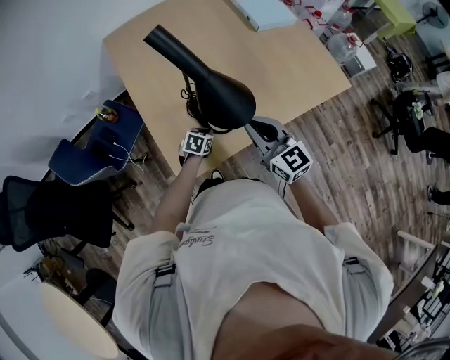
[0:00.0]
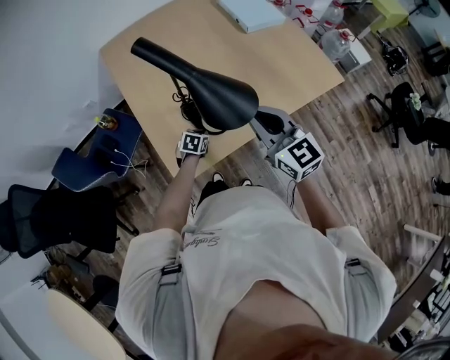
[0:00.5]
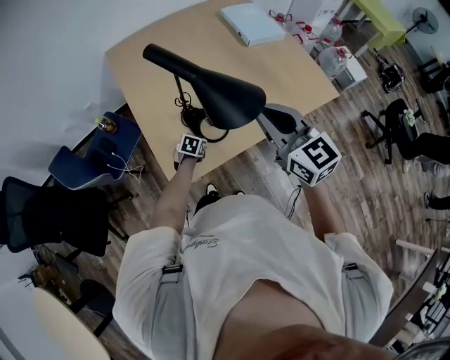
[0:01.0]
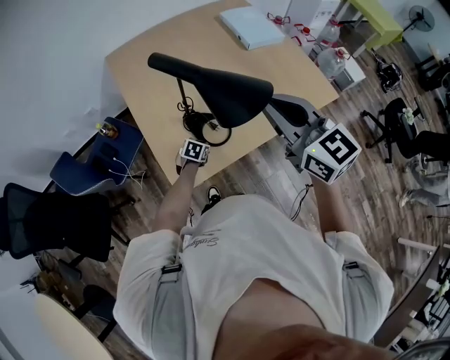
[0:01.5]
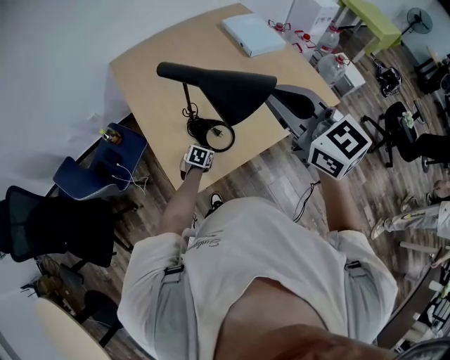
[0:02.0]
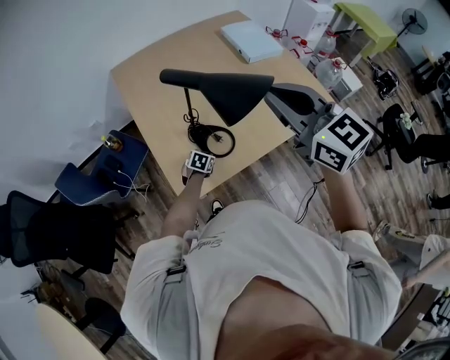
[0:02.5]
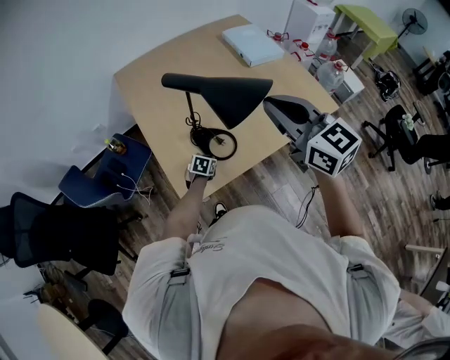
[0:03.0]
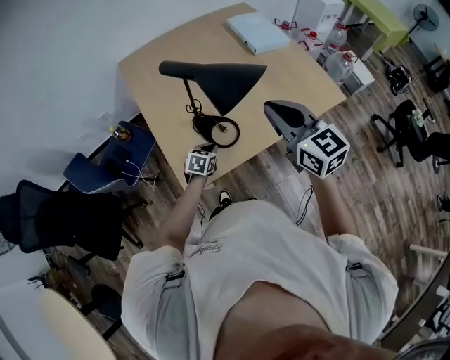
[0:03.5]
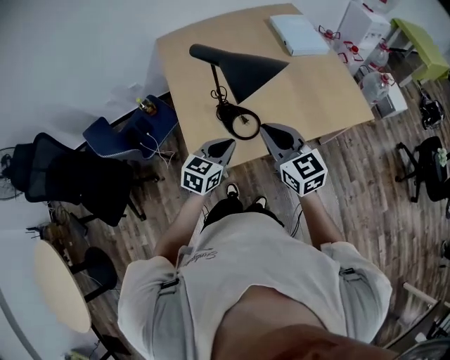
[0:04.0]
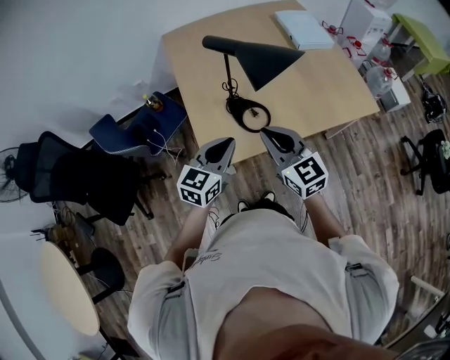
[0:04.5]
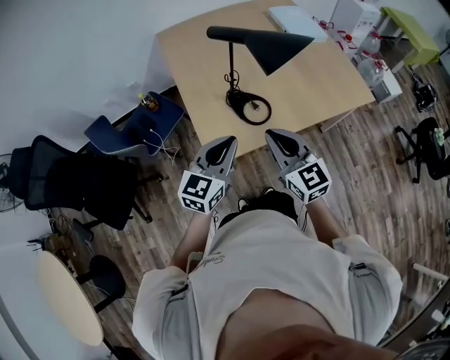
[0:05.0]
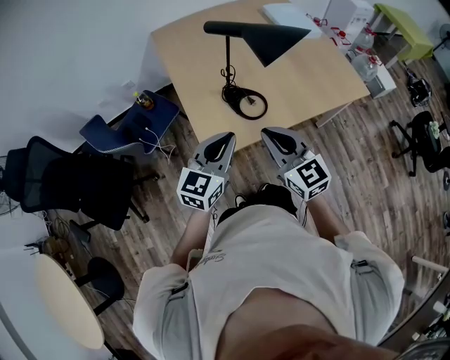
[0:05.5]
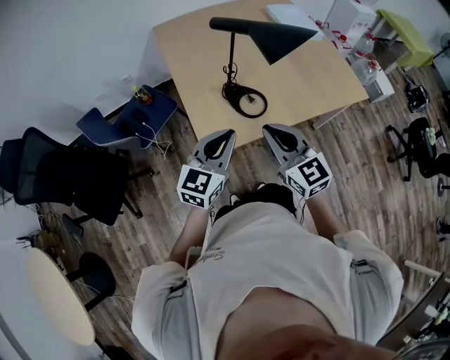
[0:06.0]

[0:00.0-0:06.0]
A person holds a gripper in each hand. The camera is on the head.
0:00.0 to 0:02.0: The right gripper goes some 25 cm upward.
0:02.0 to 0:04.0: The right gripper travels downward by approximately 15 cm, while the left gripper goes some 25 cm upward, and points its fingers some 30 degrees further upward.
0:04.0 to 0:06.0: The left gripper heads backward, upward and to the left, covering approximately 15 cm, while the right gripper moves backward and to the left, about 10 cm.

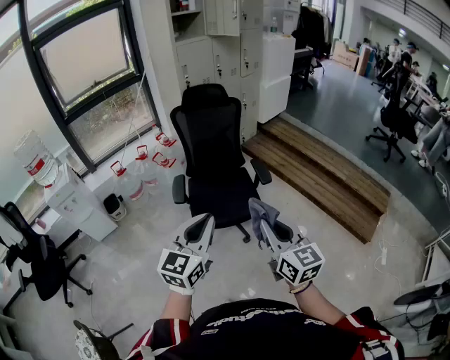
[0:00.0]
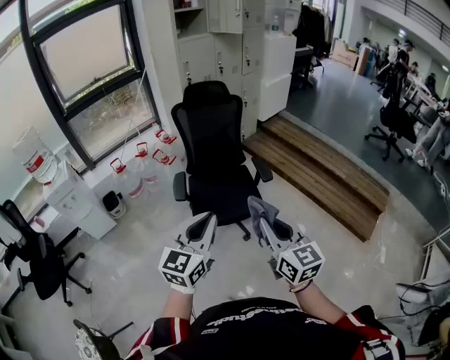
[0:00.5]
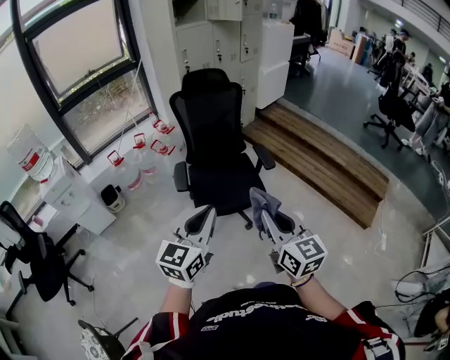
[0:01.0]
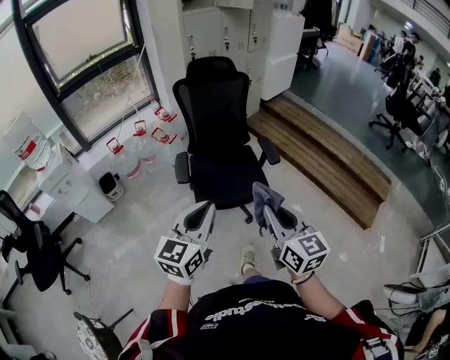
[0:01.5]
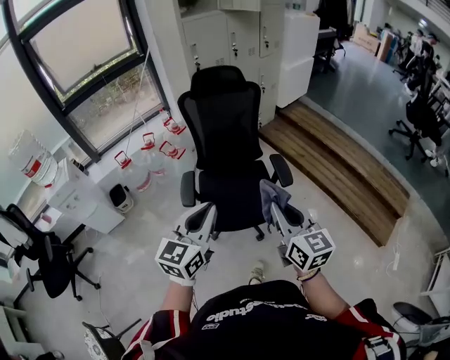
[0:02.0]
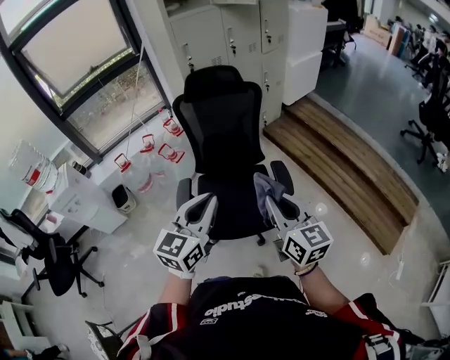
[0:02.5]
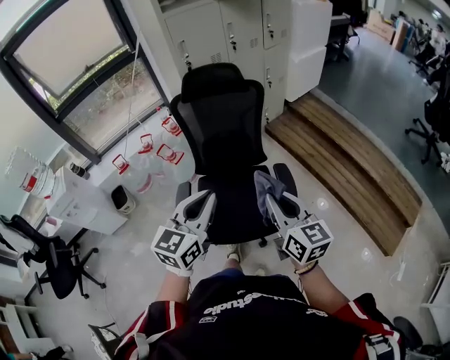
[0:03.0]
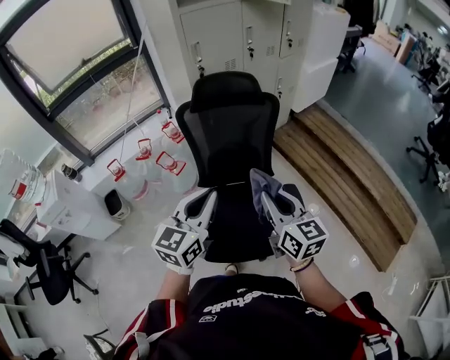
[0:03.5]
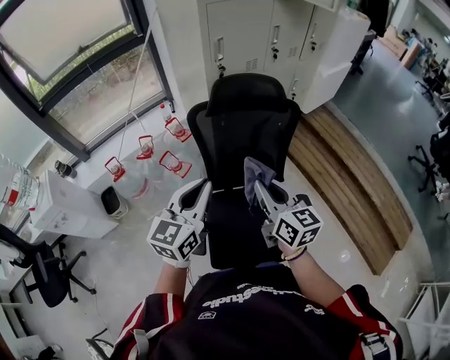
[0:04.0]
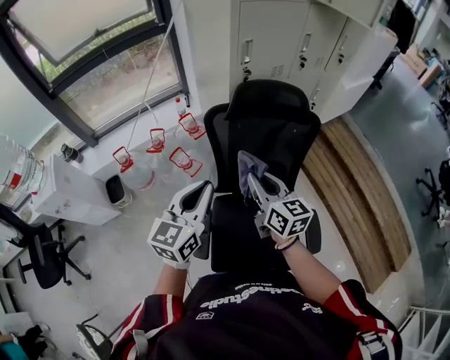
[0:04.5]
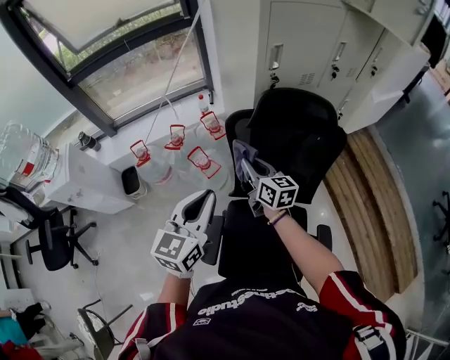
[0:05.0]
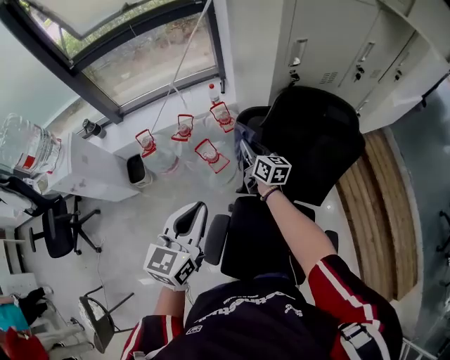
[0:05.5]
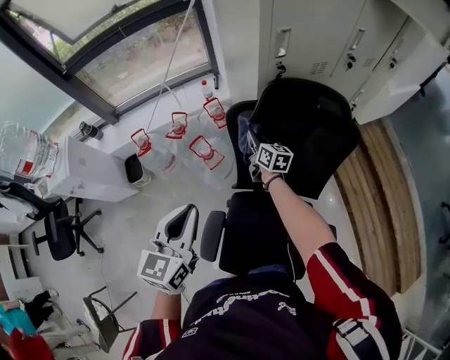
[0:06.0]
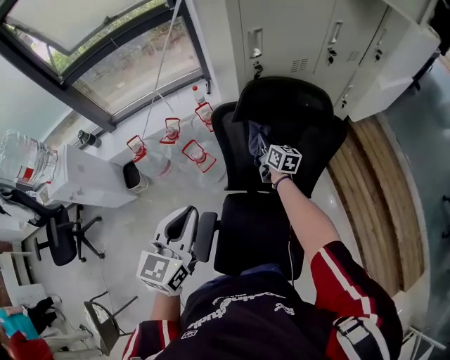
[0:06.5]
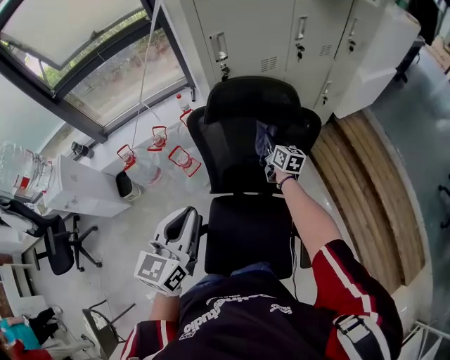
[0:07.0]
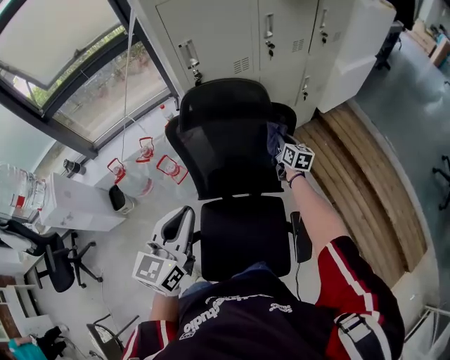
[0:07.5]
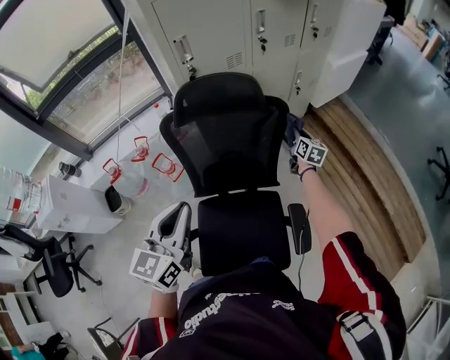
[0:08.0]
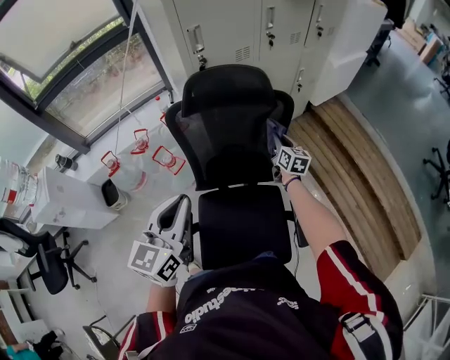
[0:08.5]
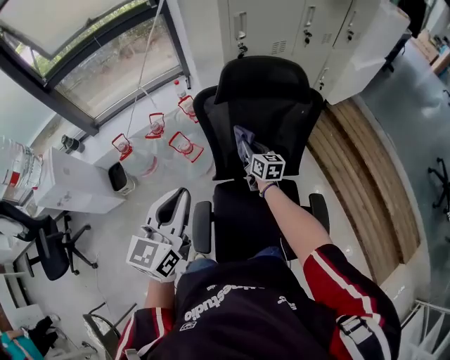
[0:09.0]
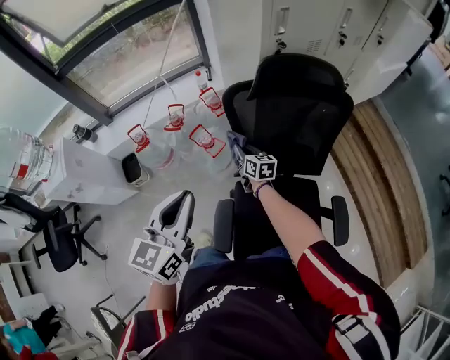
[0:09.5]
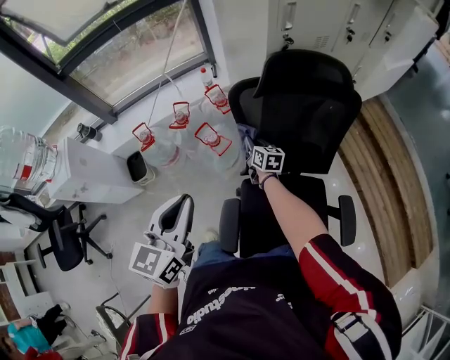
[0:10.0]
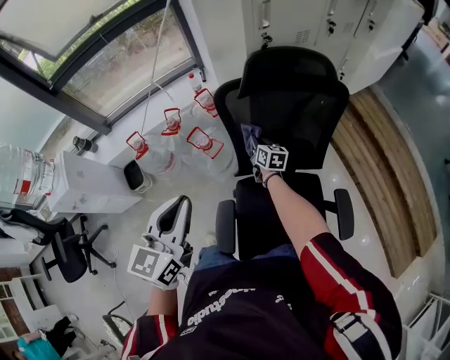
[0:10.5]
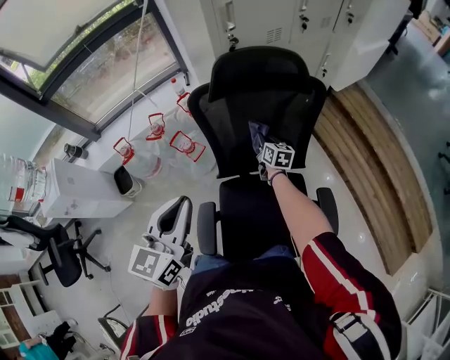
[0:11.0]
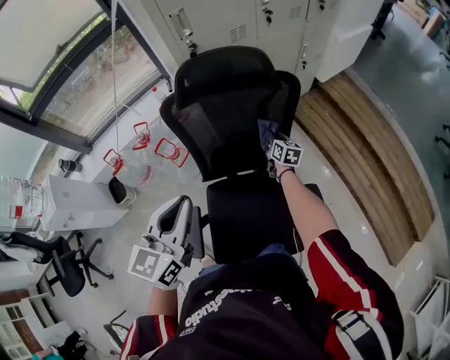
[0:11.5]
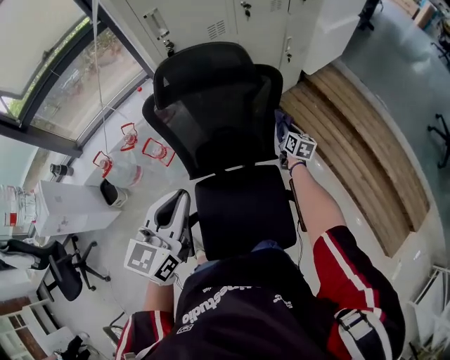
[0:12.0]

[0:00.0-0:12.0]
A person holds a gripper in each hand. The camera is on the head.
0:00.0 to 0:02.0: Both grippers move forward, about 20 cm.
0:02.0 to 0:04.0: Both grippers are carried forward, about 50 cm.
0:04.0 to 0:06.0: The right gripper travels forward and downward by approximately 50 cm, while the left gripper is displaced forward, to the left and downward by approximately 15 cm, and changes its angle by about 20 degrees.
0:06.0 to 0:08.0: The right gripper shifts about 50 cm to the right, and changes its angle by approximately 30 degrees; the left gripper moves to the right, about 20 cm.
0:08.0 to 0:10.0: The left gripper goes about 25 cm to the left, while the right gripper shifts approximately 50 cm to the left, and changes its angle by about 30 degrees.
0:10.0 to 0:12.0: The left gripper moves to the right, roughly 25 cm. Meanwhile the right gripper is displaced to the right by roughly 50 cm, and rotates about 30 degrees.

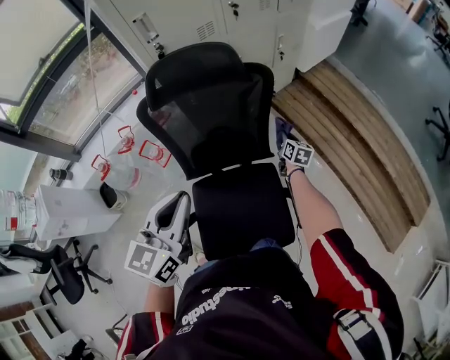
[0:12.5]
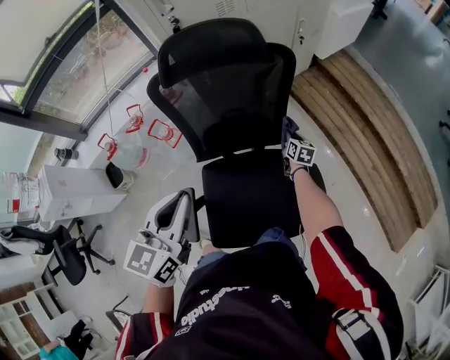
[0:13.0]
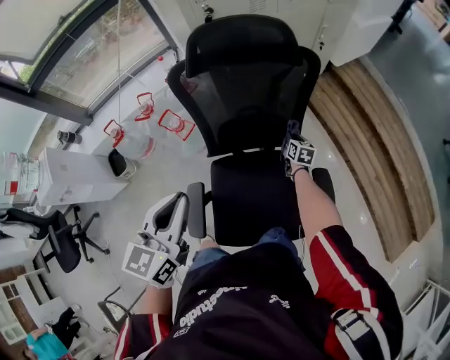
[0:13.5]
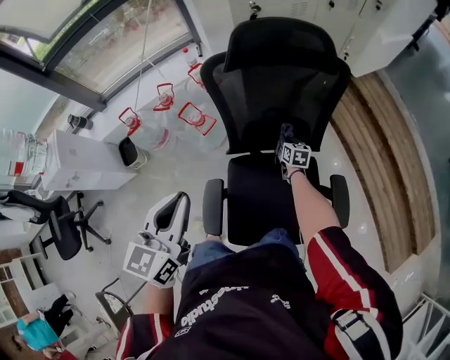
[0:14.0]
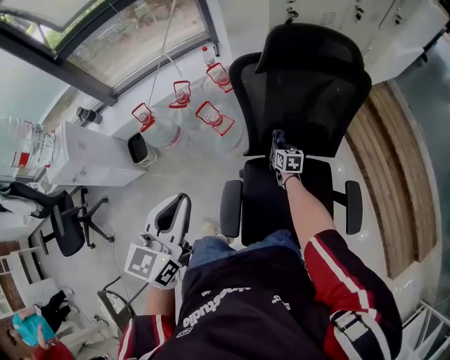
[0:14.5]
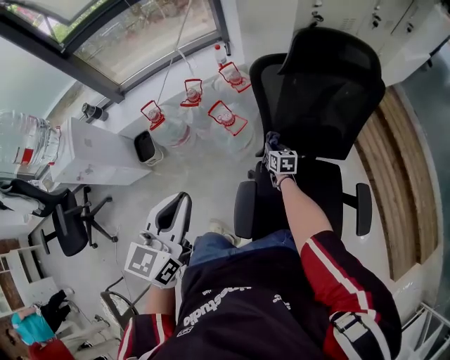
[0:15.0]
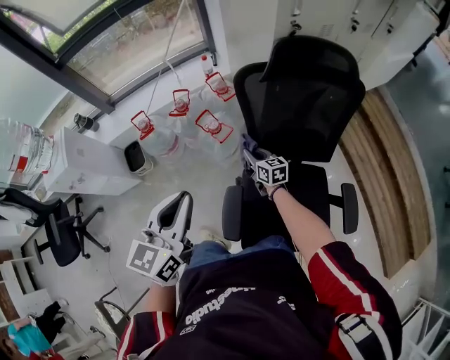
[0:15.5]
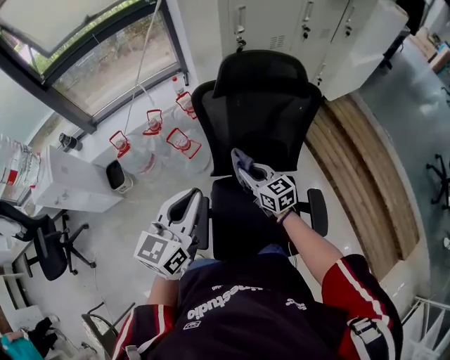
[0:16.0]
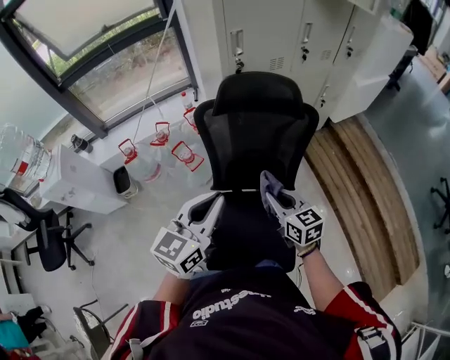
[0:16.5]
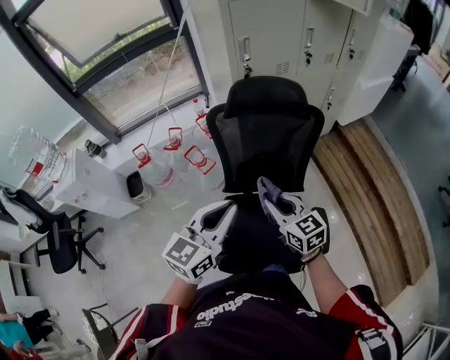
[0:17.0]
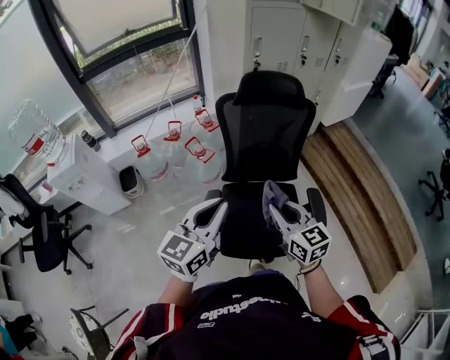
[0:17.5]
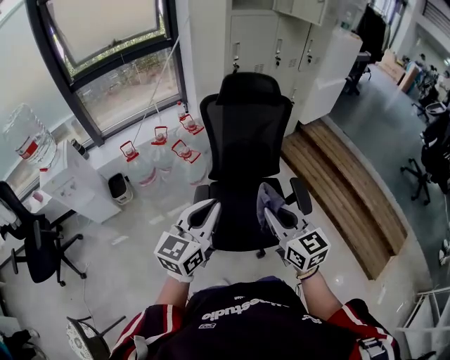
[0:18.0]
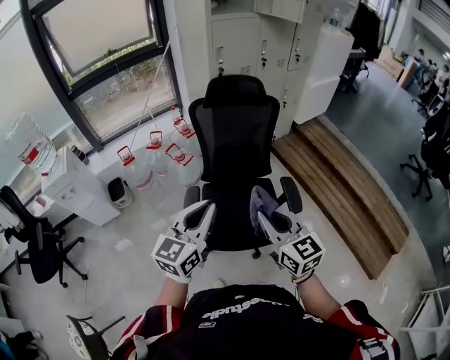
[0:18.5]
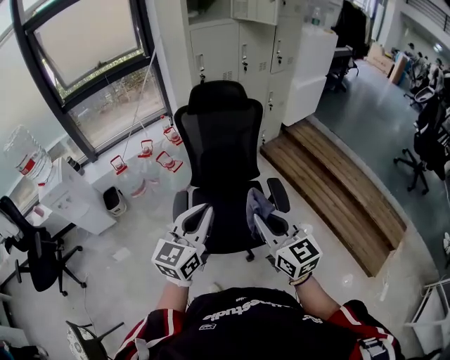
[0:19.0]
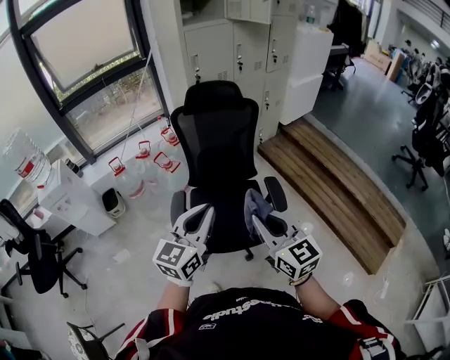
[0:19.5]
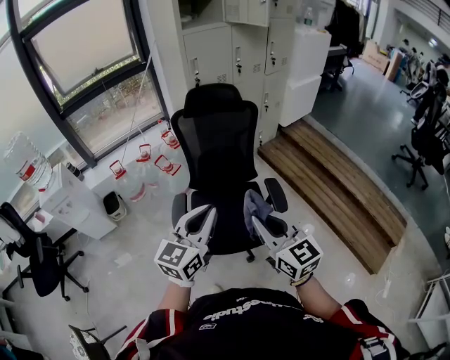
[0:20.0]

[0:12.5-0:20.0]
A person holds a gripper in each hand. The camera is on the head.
0:12.5 to 0:14.5: The two grippers go about 35 cm to the left. The right gripper rotates some 30 degrees.
0:14.5 to 0:16.5: The right gripper moves upward and backward, approximately 40 cm, and turns by roughly 30 degrees; the left gripper heads to the right, covering roughly 25 cm.
0:16.5 to 0:18.0: The grippers both shift backward by approximately 35 cm.
0:18.0 to 0:20.0: The right gripper is displaced to the right and backward by about 15 cm, while the left gripper heads to the right, covering some 15 cm.

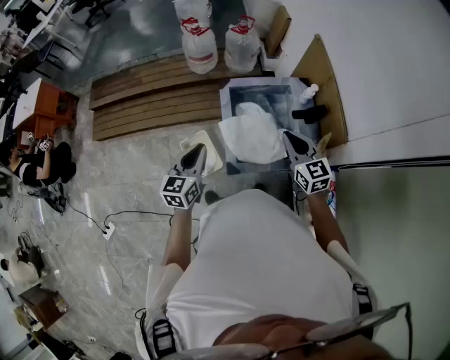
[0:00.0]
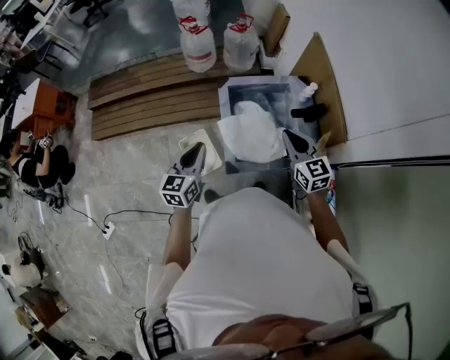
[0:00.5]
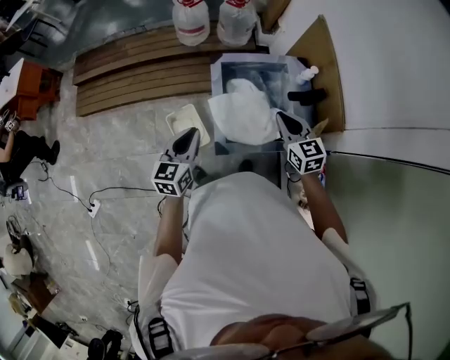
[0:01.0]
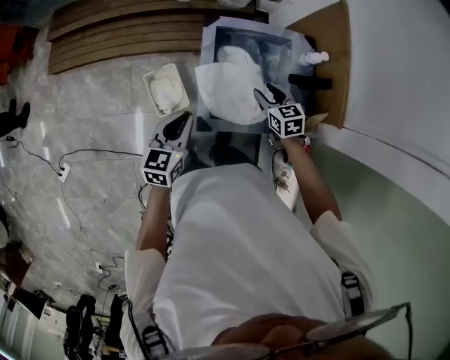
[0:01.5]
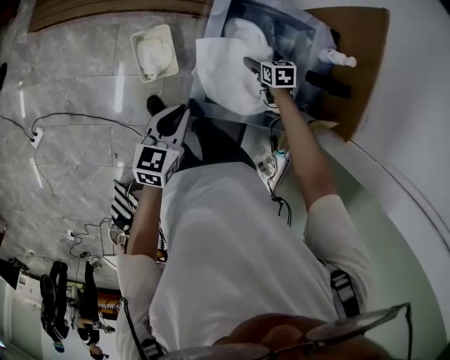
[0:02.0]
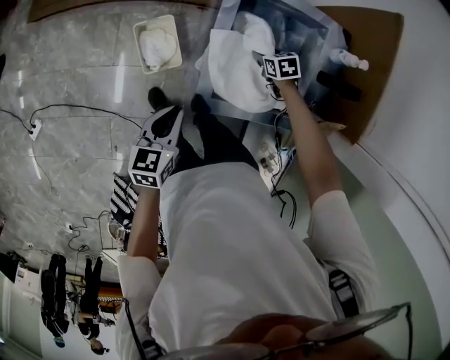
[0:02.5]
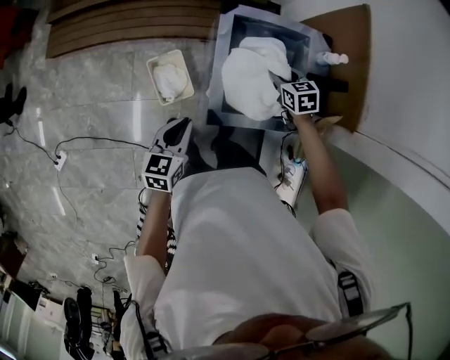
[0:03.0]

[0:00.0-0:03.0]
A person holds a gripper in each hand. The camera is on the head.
0:00.0 to 0:01.5: The left gripper shifts about 10 cm downward, while the right gripper travels downward and forward by about 25 cm, swivels approximately 30 degrees, and opens.
0:01.5 to 0:03.0: The left gripper goes approximately 10 cm to the left and downward. Meanwhile the right gripper heads forward, covering roughly 5 cm, travels downward and back again, approximately 25 cm each way, and opens, then closes once more.
